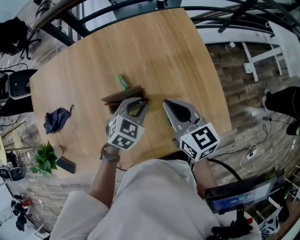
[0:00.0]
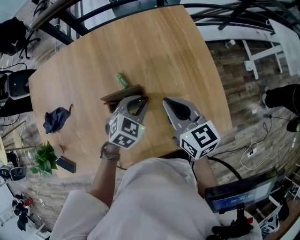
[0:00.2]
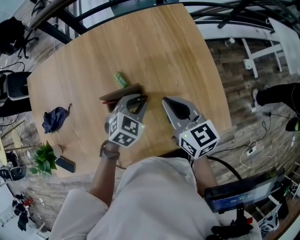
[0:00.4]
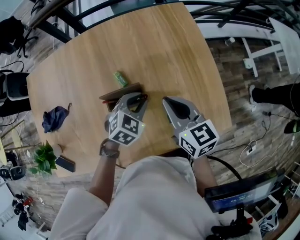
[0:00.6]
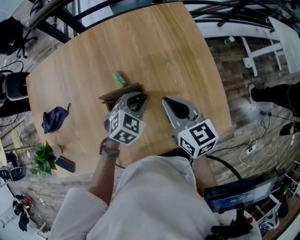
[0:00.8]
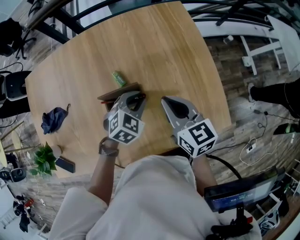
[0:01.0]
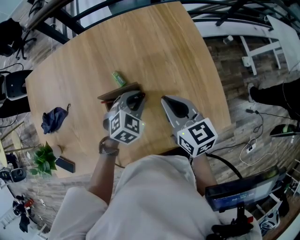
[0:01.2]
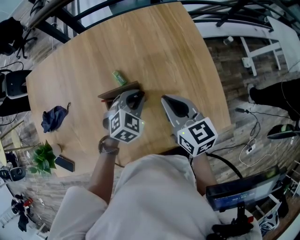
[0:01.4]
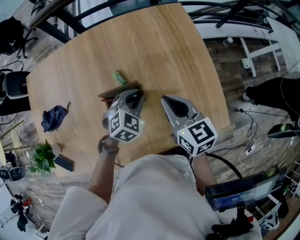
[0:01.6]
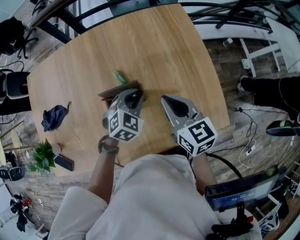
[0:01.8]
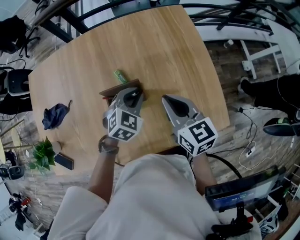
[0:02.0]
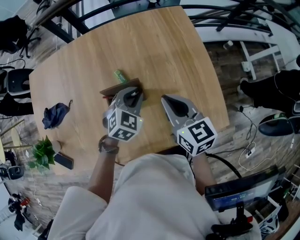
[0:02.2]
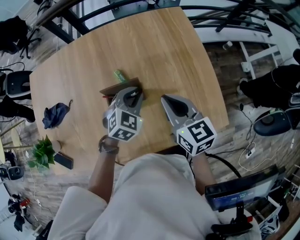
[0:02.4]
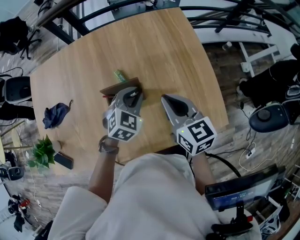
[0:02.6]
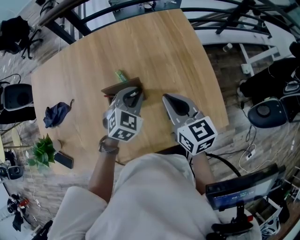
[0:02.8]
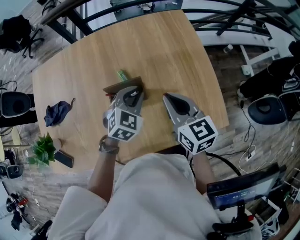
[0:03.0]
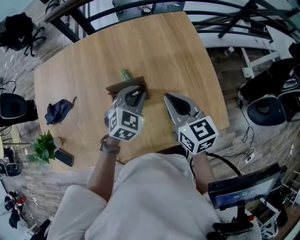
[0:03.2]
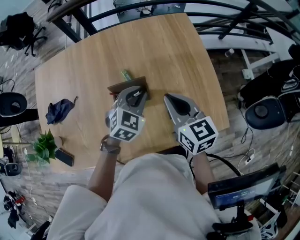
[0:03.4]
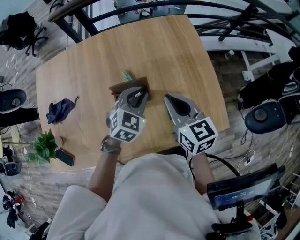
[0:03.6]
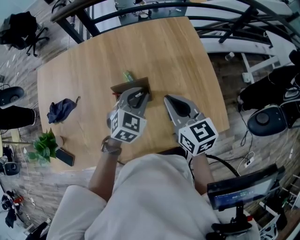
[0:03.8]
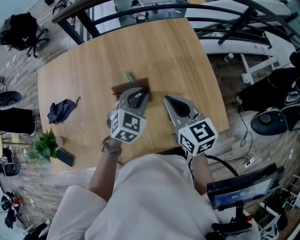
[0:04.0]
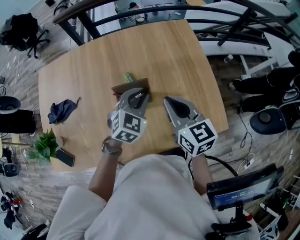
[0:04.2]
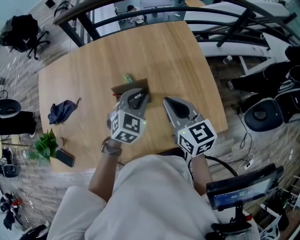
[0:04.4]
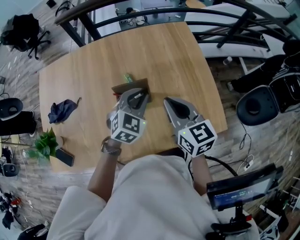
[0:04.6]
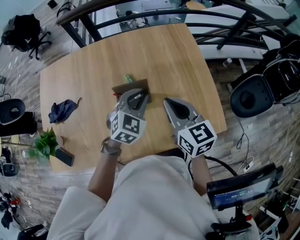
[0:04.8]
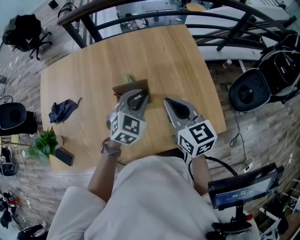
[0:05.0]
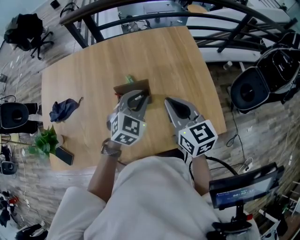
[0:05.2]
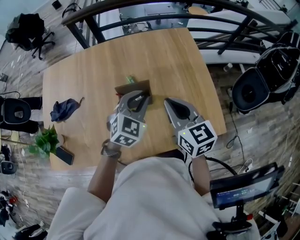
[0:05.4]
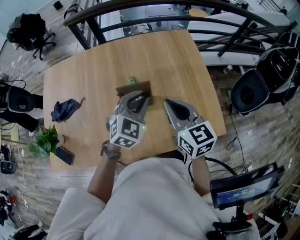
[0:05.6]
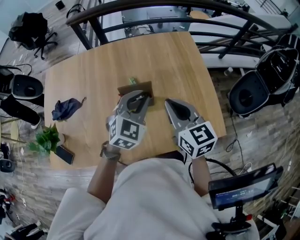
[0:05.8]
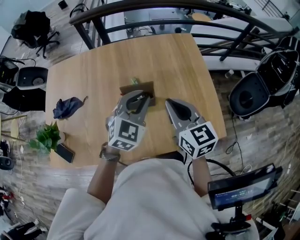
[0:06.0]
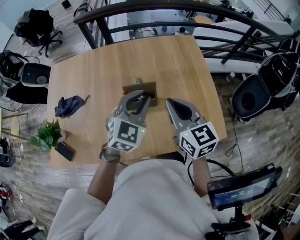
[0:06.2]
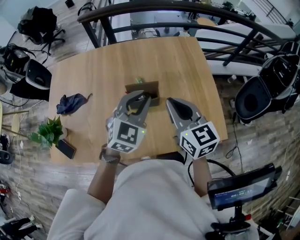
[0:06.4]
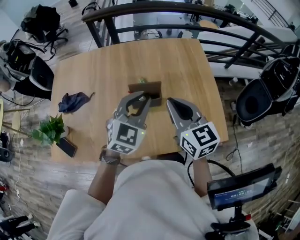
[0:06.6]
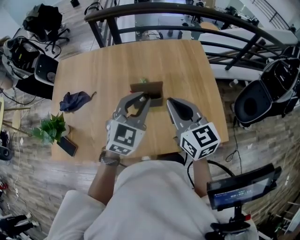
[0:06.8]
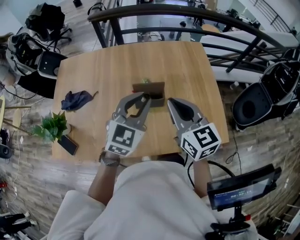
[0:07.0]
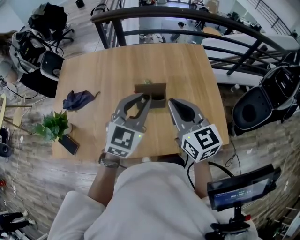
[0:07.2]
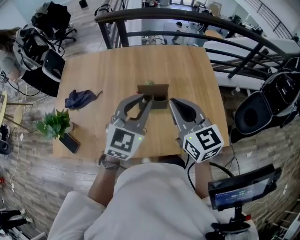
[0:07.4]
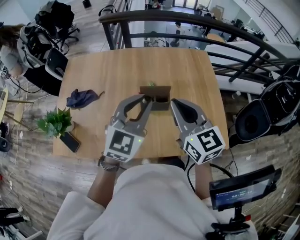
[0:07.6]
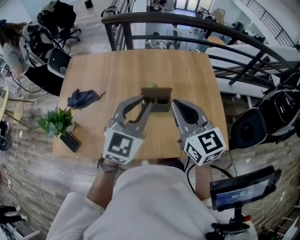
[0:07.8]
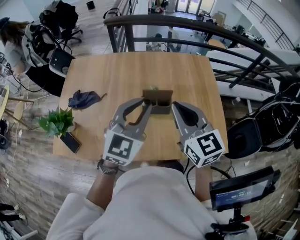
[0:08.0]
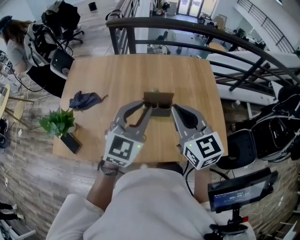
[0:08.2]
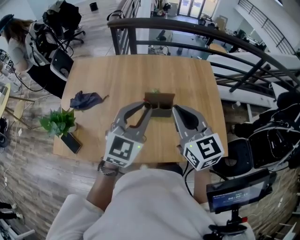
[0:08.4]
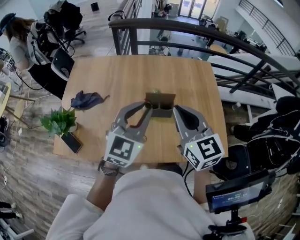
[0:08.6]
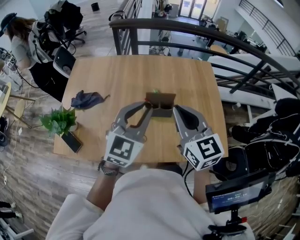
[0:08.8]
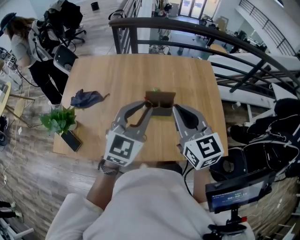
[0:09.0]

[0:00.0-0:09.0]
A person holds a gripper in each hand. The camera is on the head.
0:00.0 to 0:03.0: The grippers stay close to where they were, moving slightly.
0:03.0 to 0:04.4: There are only small adjustments of the grippers.
0:04.4 to 0:06.0: The left gripper is displaced upward by some 5 cm.
0:06.0 to 0:07.6: The left gripper travels upward, to the left and backward by about 10 cm. Meanwhile the right gripper is displaced upward and to the left by roughly 10 cm.
0:07.6 to 0:09.0: The grippers make only small movements.

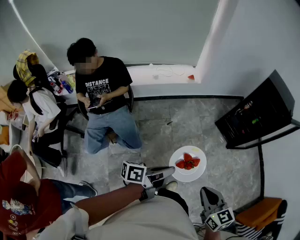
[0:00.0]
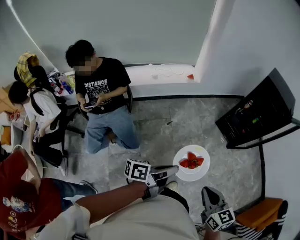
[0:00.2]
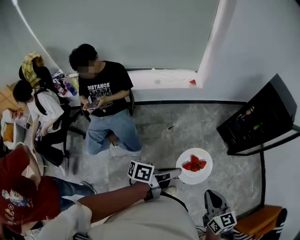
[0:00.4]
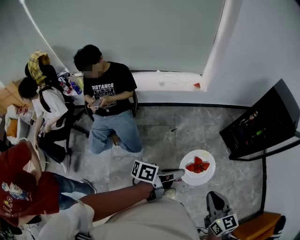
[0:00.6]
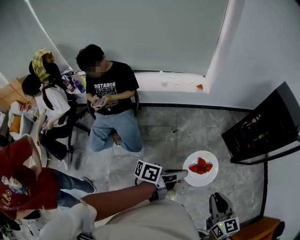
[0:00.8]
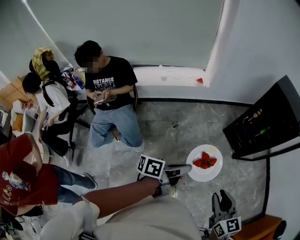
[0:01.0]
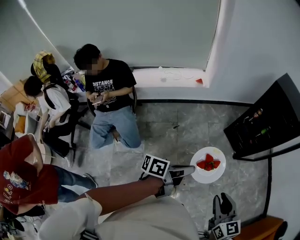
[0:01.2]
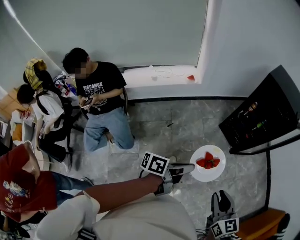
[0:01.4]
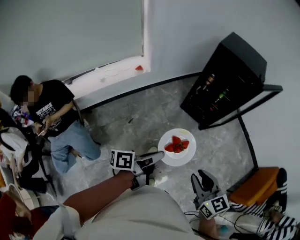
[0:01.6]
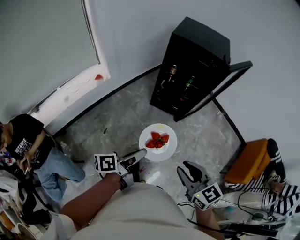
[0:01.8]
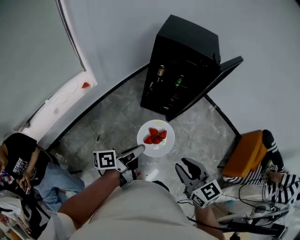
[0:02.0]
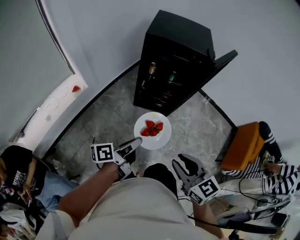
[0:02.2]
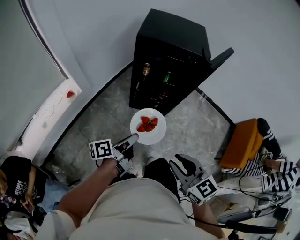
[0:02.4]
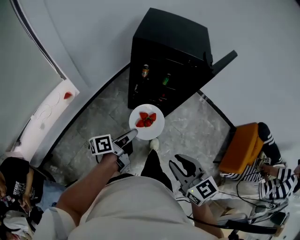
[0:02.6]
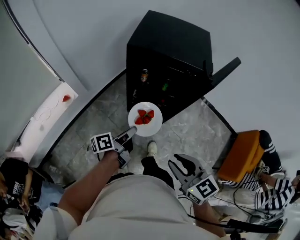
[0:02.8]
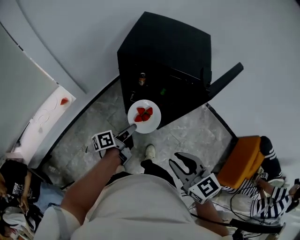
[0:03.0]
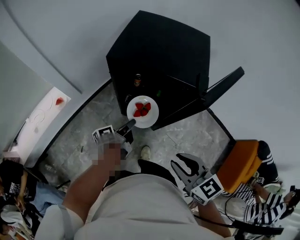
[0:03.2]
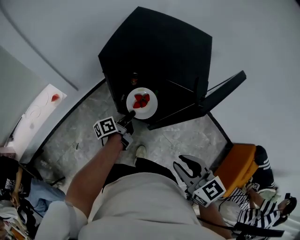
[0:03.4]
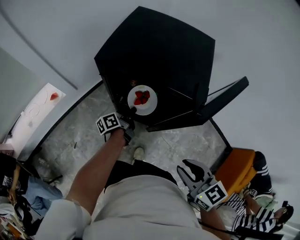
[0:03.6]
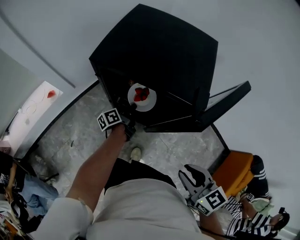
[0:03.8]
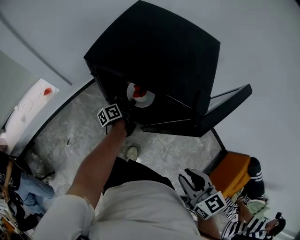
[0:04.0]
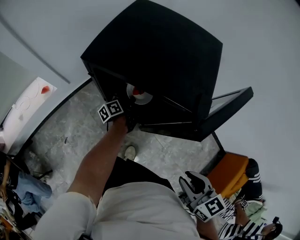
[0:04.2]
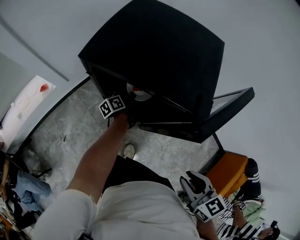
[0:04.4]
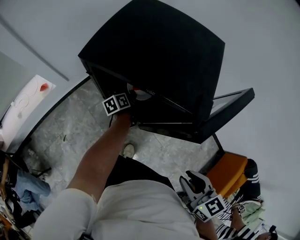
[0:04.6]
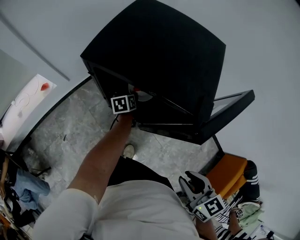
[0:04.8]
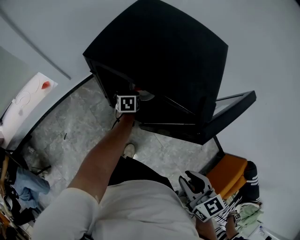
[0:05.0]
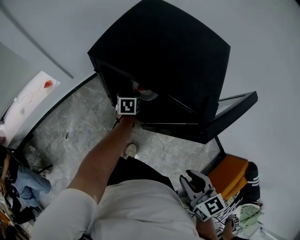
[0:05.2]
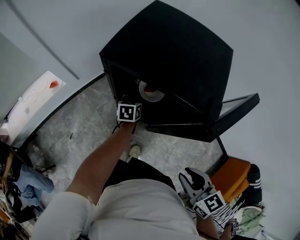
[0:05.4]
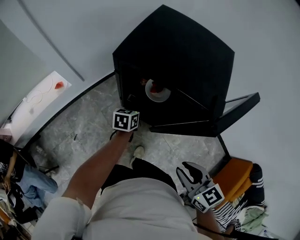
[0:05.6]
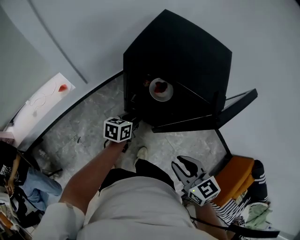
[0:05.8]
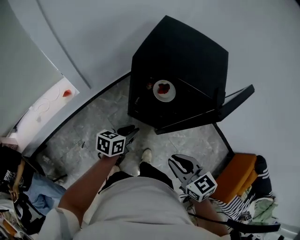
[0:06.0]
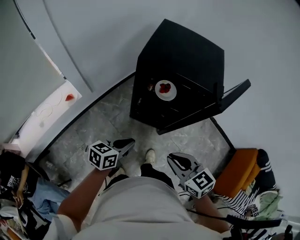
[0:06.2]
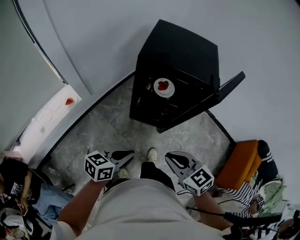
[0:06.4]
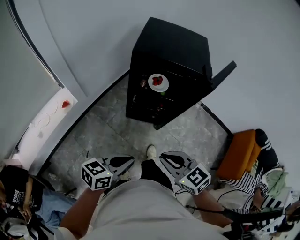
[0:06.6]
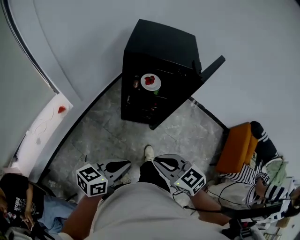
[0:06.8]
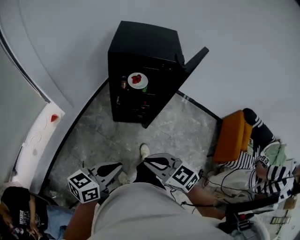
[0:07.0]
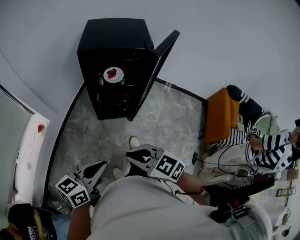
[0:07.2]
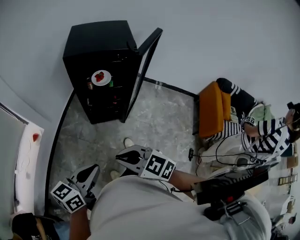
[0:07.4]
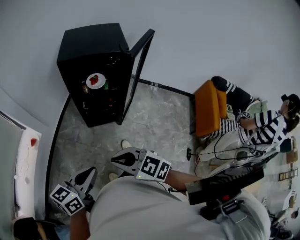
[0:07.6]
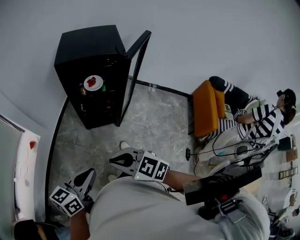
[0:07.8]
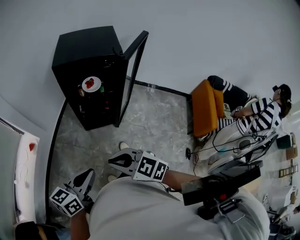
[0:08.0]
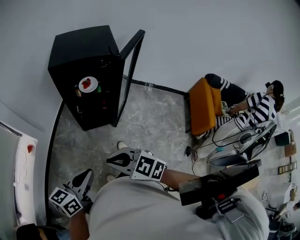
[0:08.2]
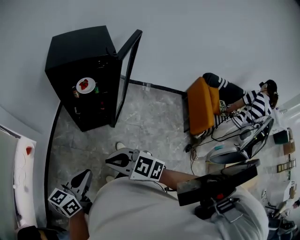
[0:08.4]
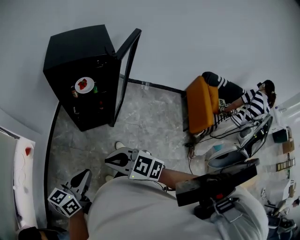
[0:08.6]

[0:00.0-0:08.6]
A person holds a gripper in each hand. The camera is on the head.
0:00.0 to 0:01.4: Both grippers travel together to the right and forward, roughly 25 cm. The right gripper opens.
0:01.4 to 0:02.8: Both grippers travel together forward, roughly 40 cm.
0:02.8 to 0:04.4: The left gripper travels forward, downward and to the right by some 40 cm, and changes its angle by roughly 30 degrees; the right gripper is displaced to the right and forward by about 25 cm.
0:04.4 to 0:05.8: The left gripper moves backward, upward and to the left, about 20 cm, rotates around the line of its fingers by some 40 degrees, clockwise from behind, and opens. The right gripper moves to the left, some 15 cm.
0:05.8 to 0:07.2: The left gripper heads backward and upward, covering roughly 40 cm, rotates some 30 degrees, and closes up, while the right gripper shifts roughly 30 cm backward and to the left, and closes up.
0:07.2 to 0:08.6: There are only small adjustments of the grippers.

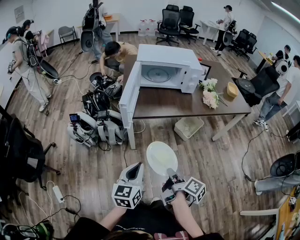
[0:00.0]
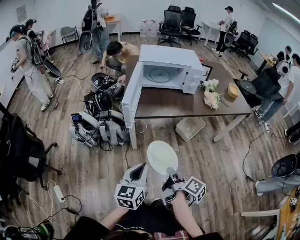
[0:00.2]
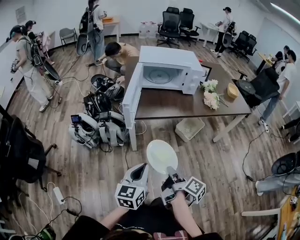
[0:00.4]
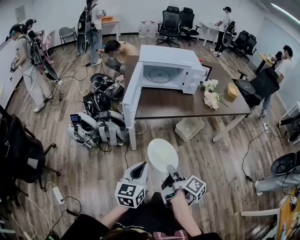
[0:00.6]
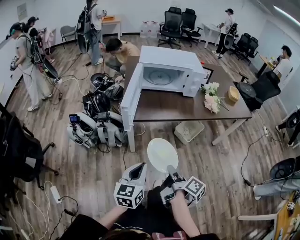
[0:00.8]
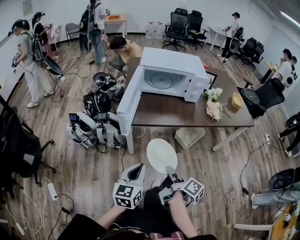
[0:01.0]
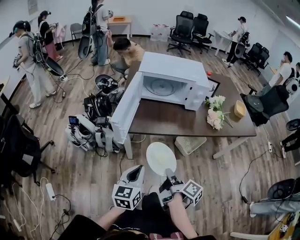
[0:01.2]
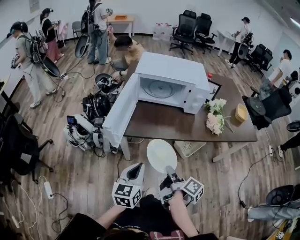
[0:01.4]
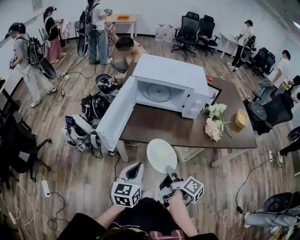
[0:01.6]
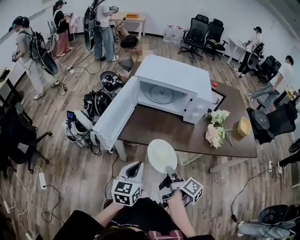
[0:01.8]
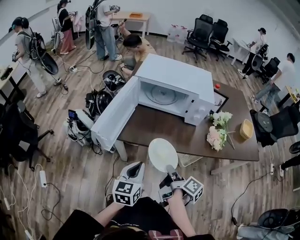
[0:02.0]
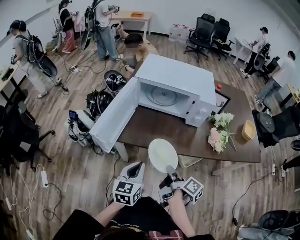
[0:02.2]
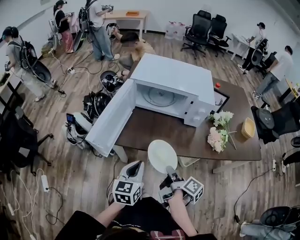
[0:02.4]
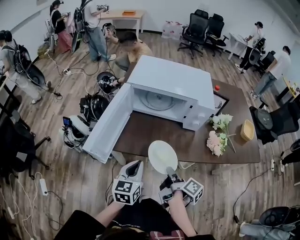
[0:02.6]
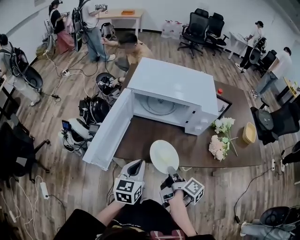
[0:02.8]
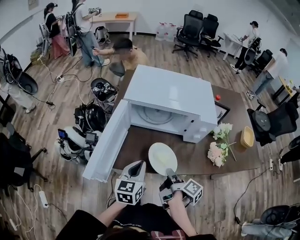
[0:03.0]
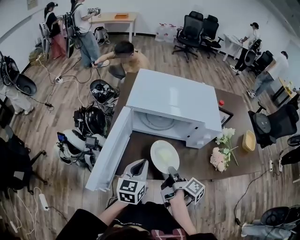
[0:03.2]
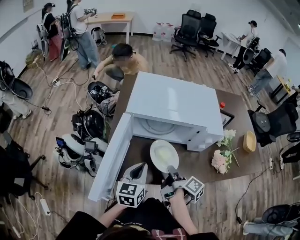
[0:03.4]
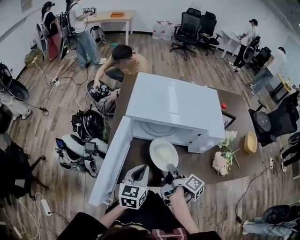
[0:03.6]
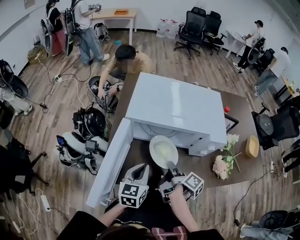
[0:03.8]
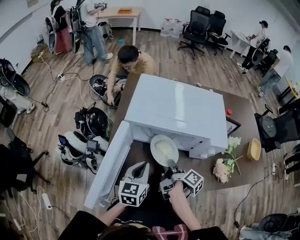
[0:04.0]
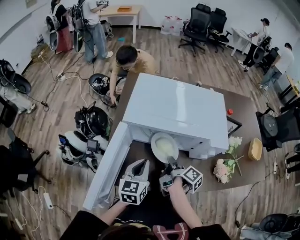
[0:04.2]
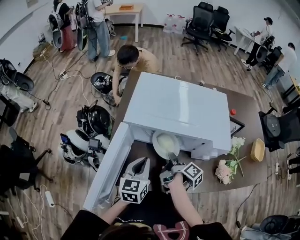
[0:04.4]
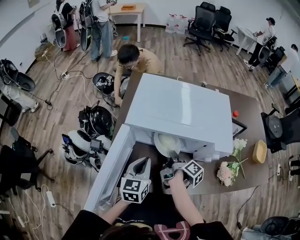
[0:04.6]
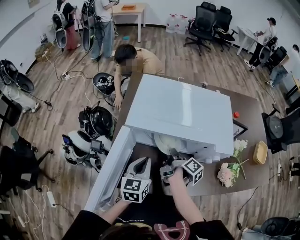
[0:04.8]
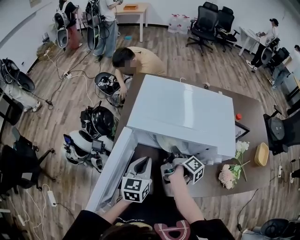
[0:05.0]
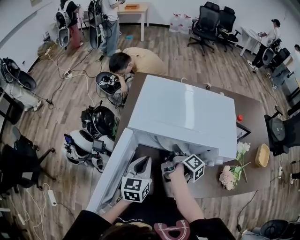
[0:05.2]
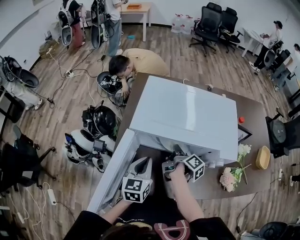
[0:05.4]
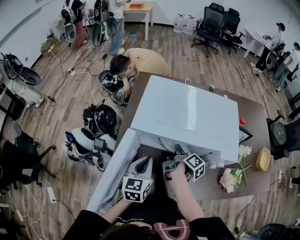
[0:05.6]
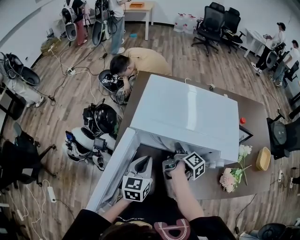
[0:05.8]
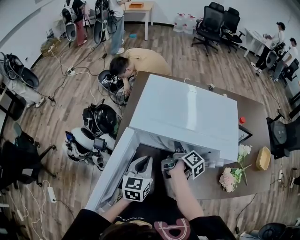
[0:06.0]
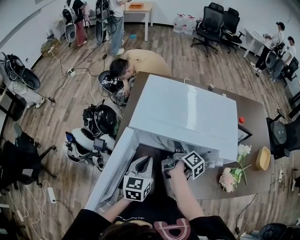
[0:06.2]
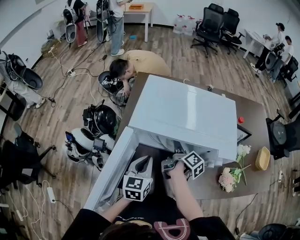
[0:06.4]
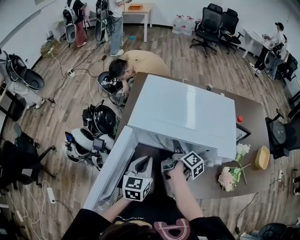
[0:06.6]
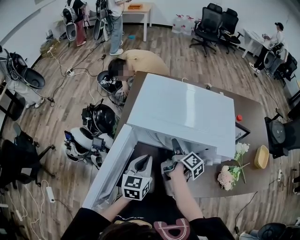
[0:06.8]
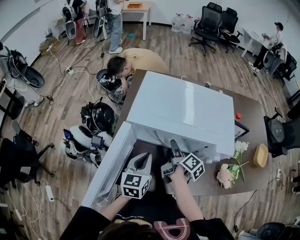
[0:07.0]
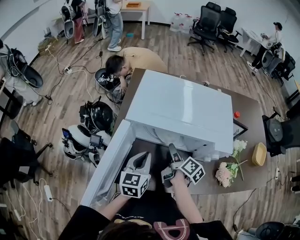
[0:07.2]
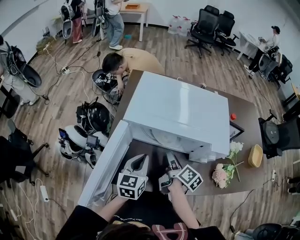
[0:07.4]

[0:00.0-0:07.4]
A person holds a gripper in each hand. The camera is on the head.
0:00.0 to 0:01.4: The left gripper ends up about 15 cm from where it was.
0:01.4 to 0:03.0: The left gripper shifts by approximately 25 cm.
0:03.0 to 0:04.4: The left gripper changes place by some 15 cm.
